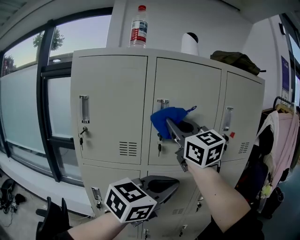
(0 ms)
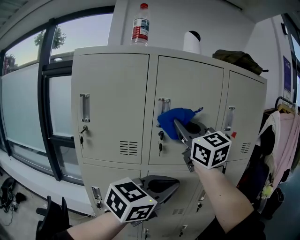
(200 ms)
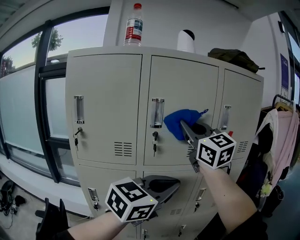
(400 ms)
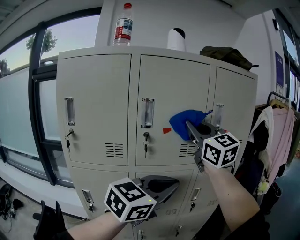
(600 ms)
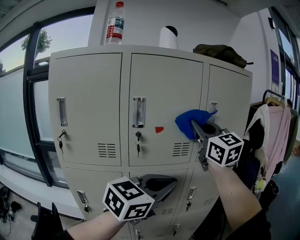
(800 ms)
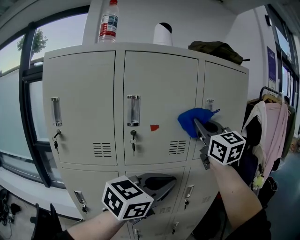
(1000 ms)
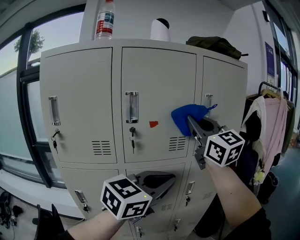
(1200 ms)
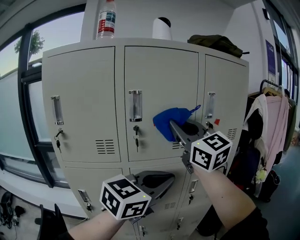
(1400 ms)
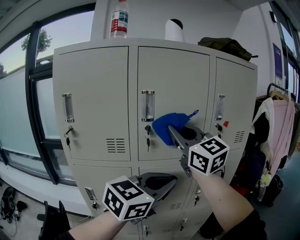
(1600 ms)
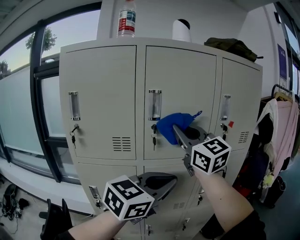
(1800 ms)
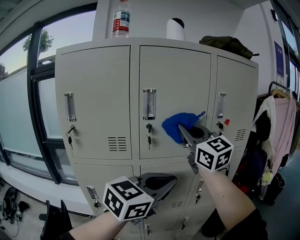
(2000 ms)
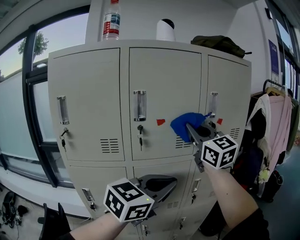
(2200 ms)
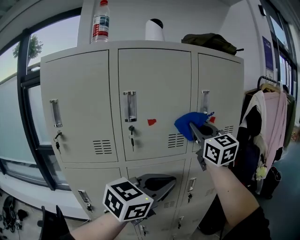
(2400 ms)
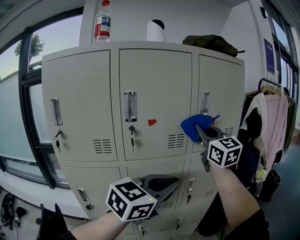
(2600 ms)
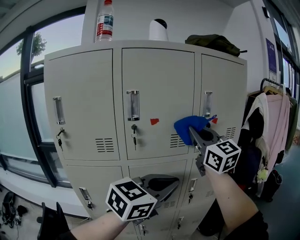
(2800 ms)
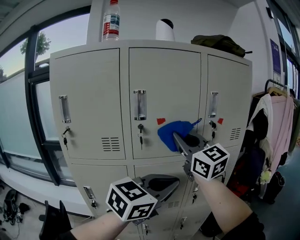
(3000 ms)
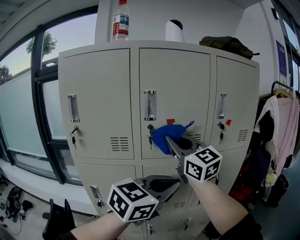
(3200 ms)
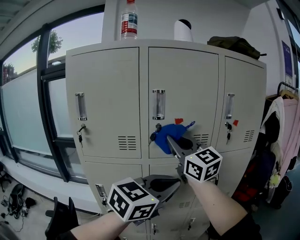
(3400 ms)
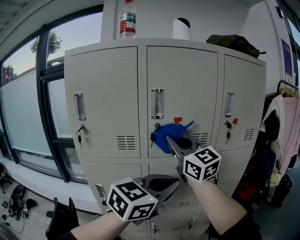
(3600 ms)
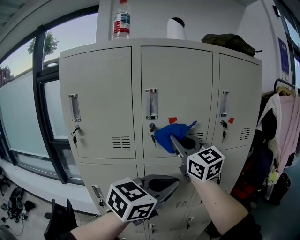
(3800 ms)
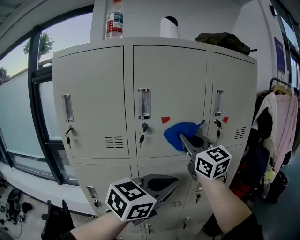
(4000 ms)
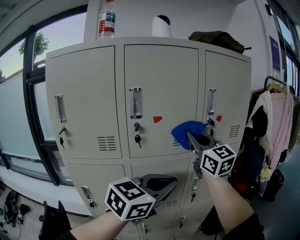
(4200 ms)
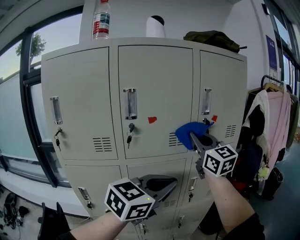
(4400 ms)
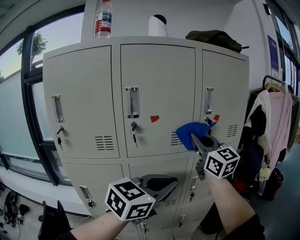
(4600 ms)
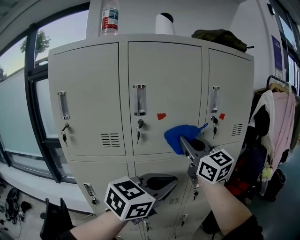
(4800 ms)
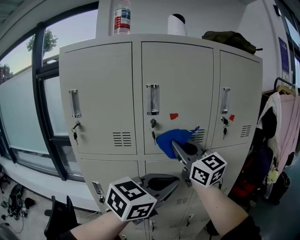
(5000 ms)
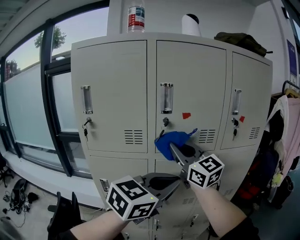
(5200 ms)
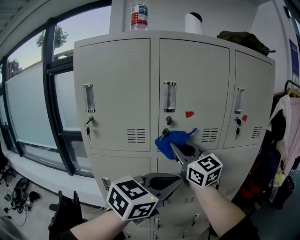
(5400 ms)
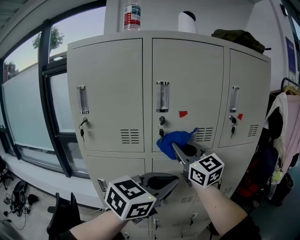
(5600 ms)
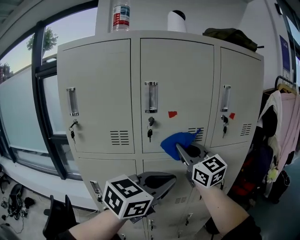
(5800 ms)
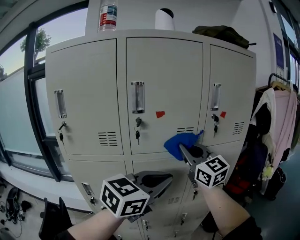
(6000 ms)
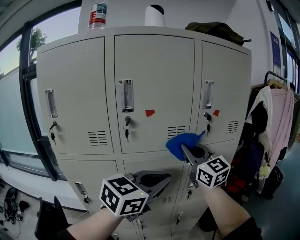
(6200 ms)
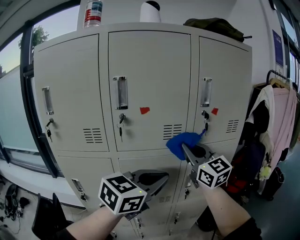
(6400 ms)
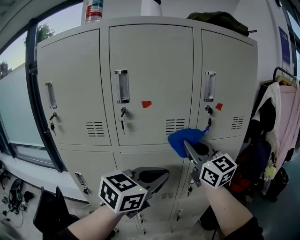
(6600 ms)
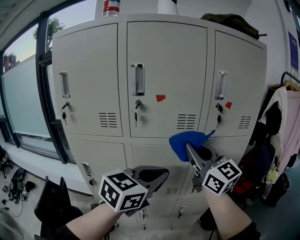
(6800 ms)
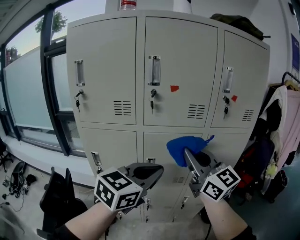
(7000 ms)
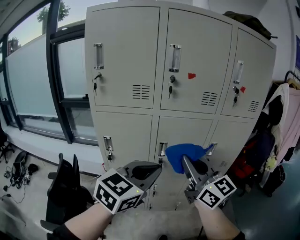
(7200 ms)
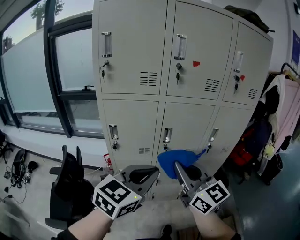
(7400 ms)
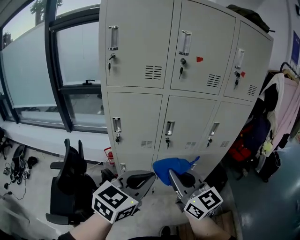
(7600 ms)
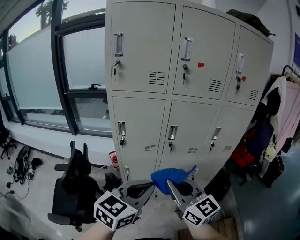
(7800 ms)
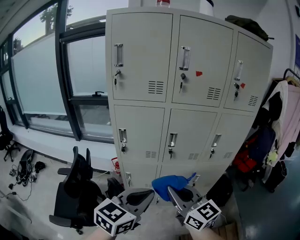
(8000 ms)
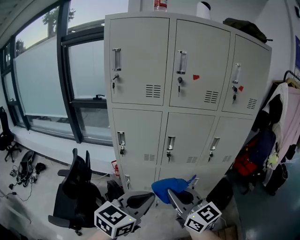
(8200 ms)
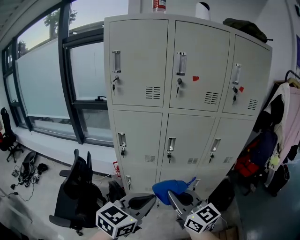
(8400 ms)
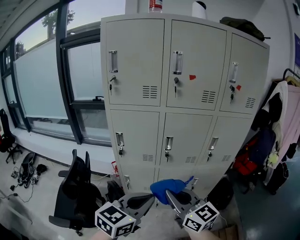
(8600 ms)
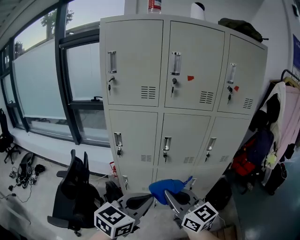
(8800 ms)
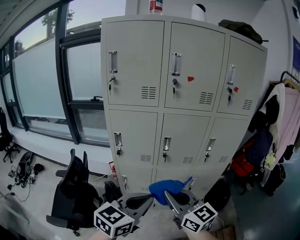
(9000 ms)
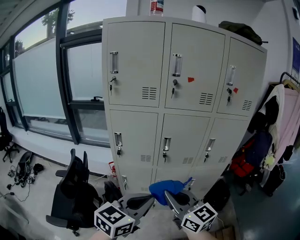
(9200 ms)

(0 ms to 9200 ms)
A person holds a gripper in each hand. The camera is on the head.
0 ms - 1600 ms: The right gripper moves approximately 20 cm to the right and comes back.
1600 ms - 3000 ms: The right gripper moves approximately 15 cm to the right and comes back.
3000 ms - 4600 ms: The right gripper travels to the right by approximately 10 cm.
4600 ms - 6200 ms: The right gripper heads downward, covering about 5 cm, and travels to the left and back again, about 20 cm each way. The left gripper moves roughly 10 cm to the left and comes back.
6200 ms - 7600 ms: Both grippers travel together backward, to the left and downward, roughly 35 cm.
7600 ms - 9200 ms: The right gripper changes place by roughly 5 cm. Meanwhile the left gripper is displaced backward by roughly 5 cm.

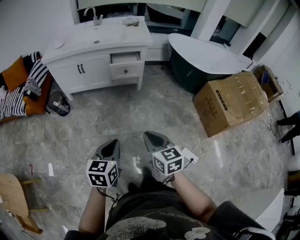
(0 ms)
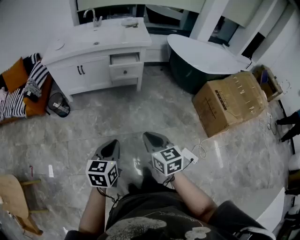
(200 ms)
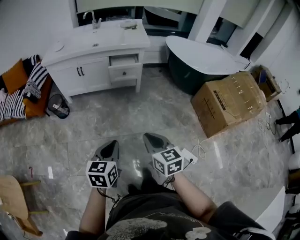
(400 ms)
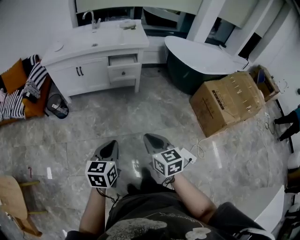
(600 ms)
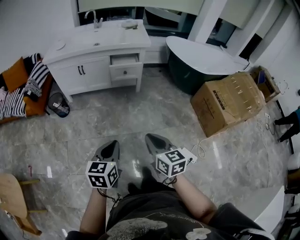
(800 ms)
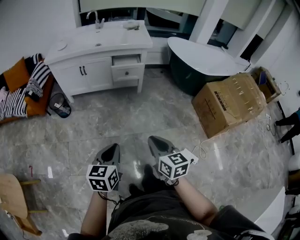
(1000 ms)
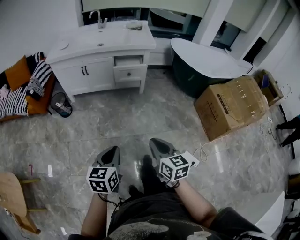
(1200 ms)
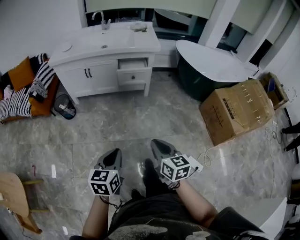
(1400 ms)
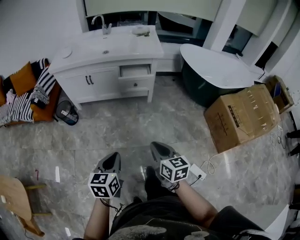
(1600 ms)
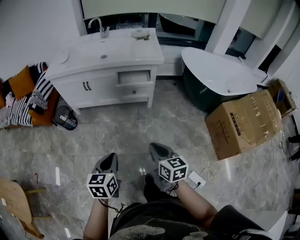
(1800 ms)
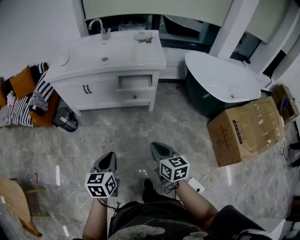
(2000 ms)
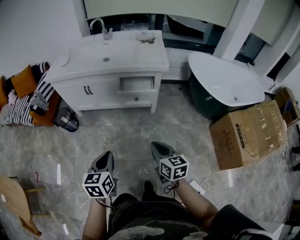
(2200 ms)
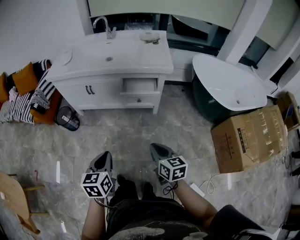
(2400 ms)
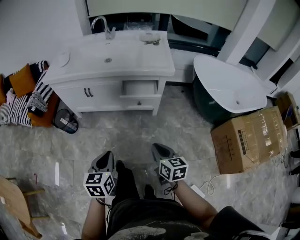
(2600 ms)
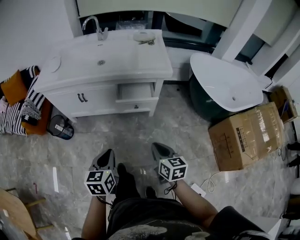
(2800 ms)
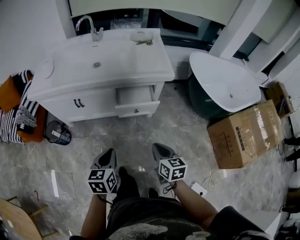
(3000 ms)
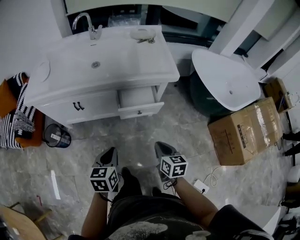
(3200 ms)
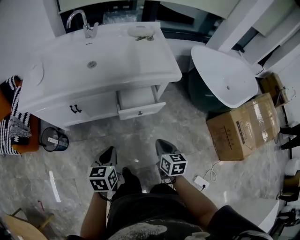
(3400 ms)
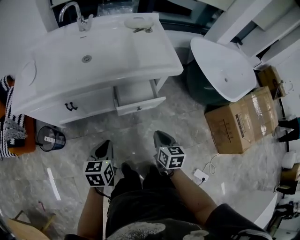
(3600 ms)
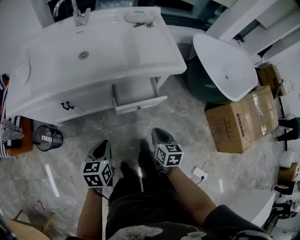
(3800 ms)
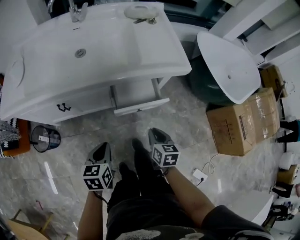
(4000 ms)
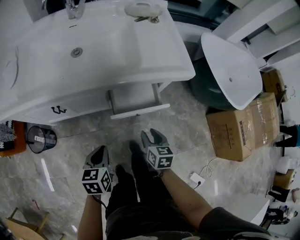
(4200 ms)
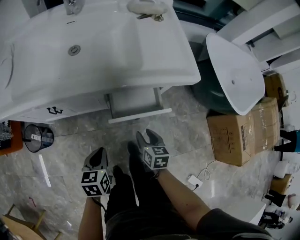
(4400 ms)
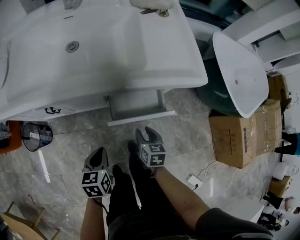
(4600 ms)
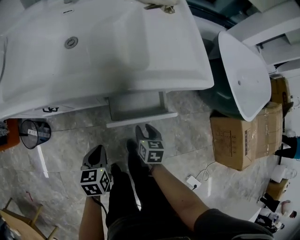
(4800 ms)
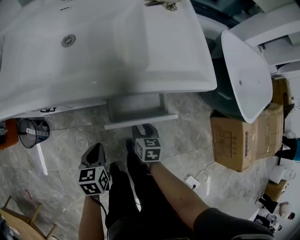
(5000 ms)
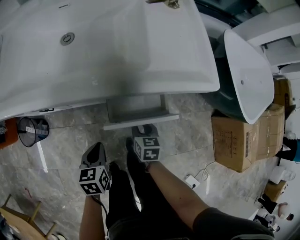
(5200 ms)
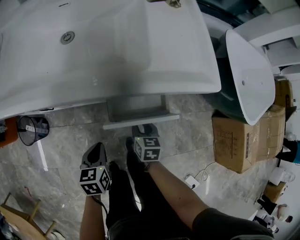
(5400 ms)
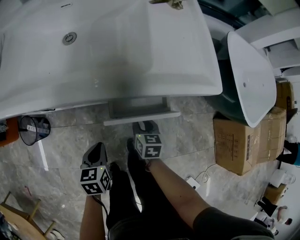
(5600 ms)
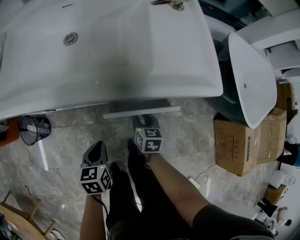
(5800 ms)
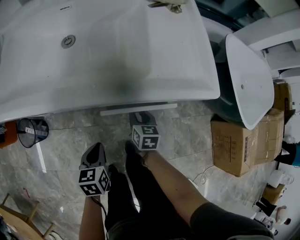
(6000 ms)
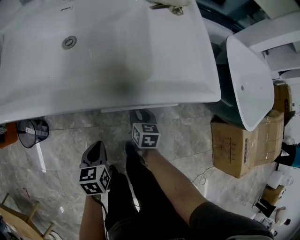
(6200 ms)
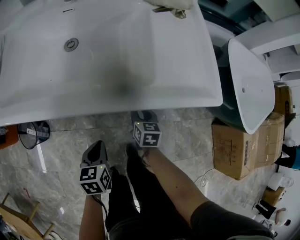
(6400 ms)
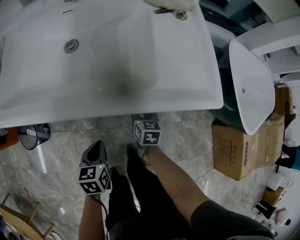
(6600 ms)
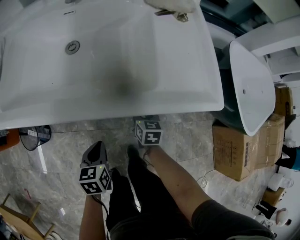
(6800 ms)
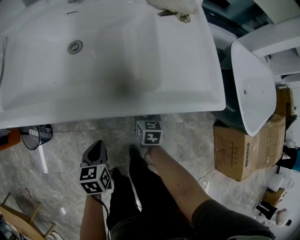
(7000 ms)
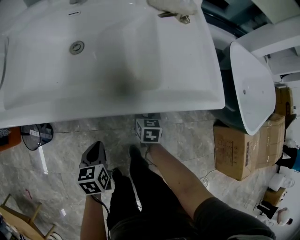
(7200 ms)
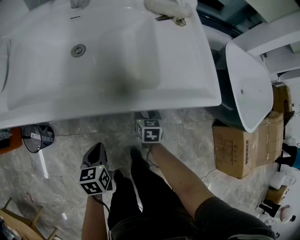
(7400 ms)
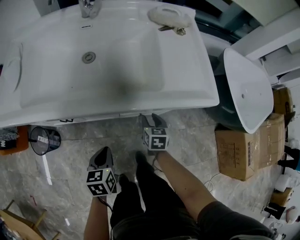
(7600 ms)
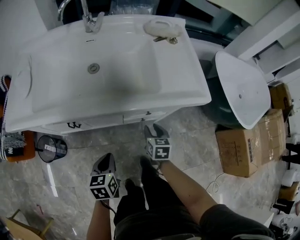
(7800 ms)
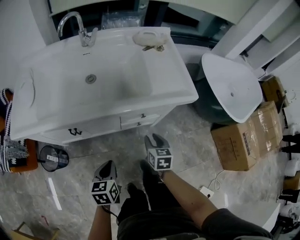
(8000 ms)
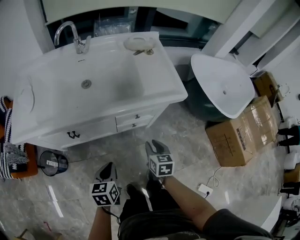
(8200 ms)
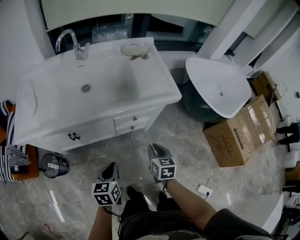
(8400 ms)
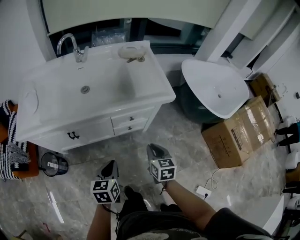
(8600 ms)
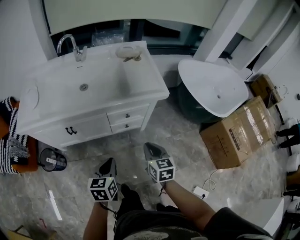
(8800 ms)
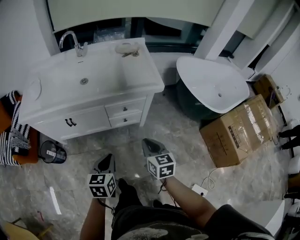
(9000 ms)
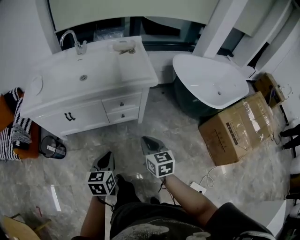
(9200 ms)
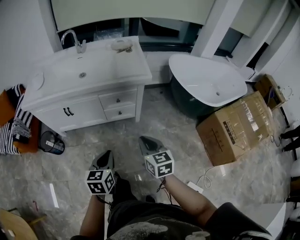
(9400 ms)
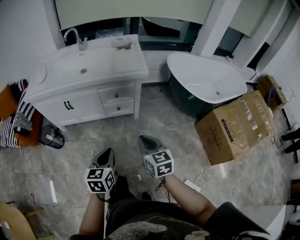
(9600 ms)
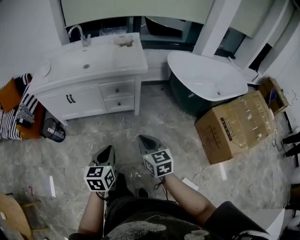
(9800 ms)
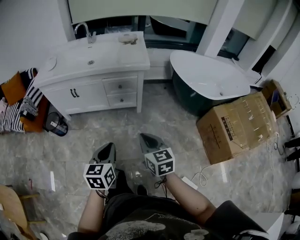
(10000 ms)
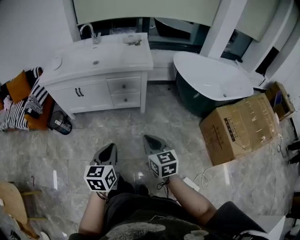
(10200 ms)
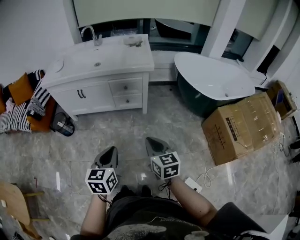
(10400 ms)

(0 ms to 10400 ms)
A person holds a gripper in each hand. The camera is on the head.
0 ms - 1400 ms: The grippers move only a little.
1400 ms - 3000 ms: The two grippers go approximately 40 cm forward.
3000 ms - 4400 ms: Both grippers move forward and downward, some 25 cm. The right gripper opens.
4400 ms - 6000 ms: The right gripper moves forward and downward, about 15 cm. Meanwhile the left gripper heads forward and downward, covering about 10 cm.
6000 ms - 7400 ms: The left gripper changes place by roughly 5 cm.
7400 ms - 9000 ms: The right gripper shifts about 40 cm backward and upward, and closes its fingers, while the left gripper heads upward, backward and to the right, covering roughly 30 cm, and swivels about 20 degrees.
9000 ms - 10400 ms: The left gripper is displaced backward and to the right by some 30 cm, while the right gripper moves backward, about 30 cm.

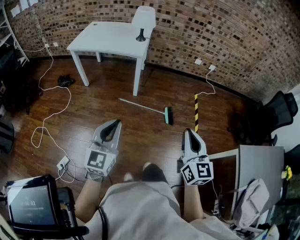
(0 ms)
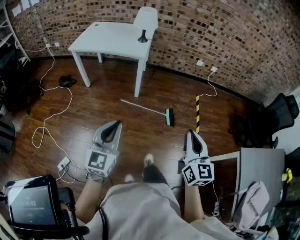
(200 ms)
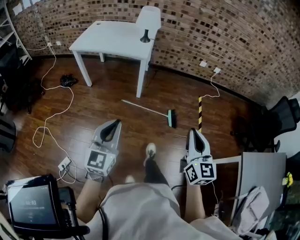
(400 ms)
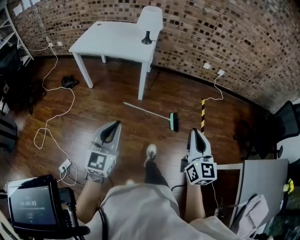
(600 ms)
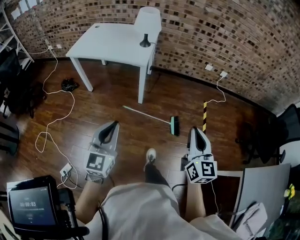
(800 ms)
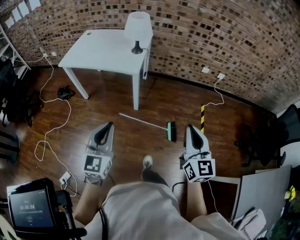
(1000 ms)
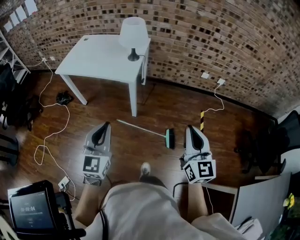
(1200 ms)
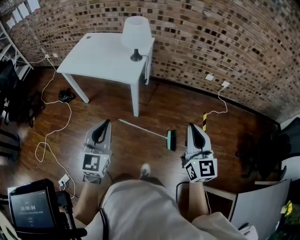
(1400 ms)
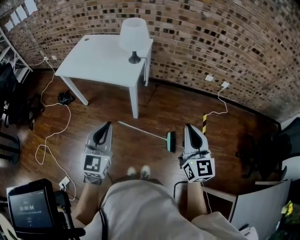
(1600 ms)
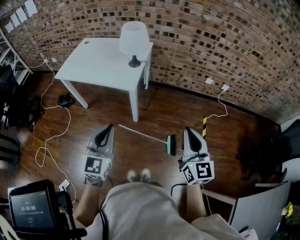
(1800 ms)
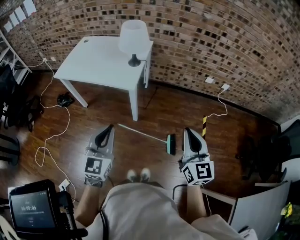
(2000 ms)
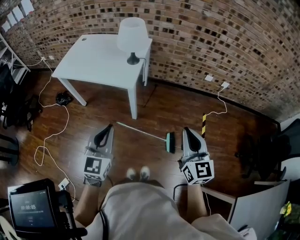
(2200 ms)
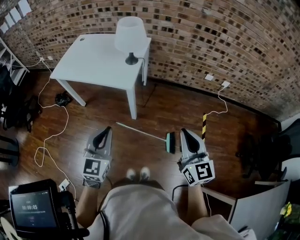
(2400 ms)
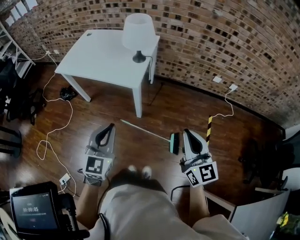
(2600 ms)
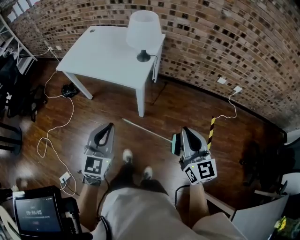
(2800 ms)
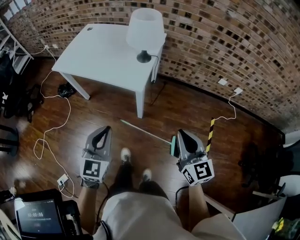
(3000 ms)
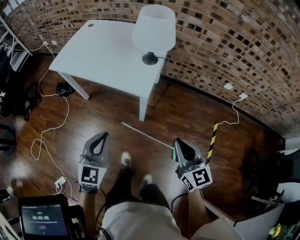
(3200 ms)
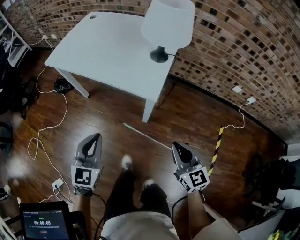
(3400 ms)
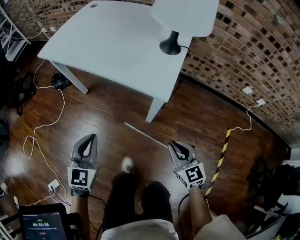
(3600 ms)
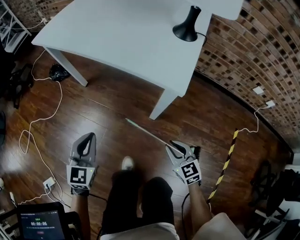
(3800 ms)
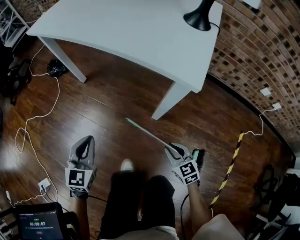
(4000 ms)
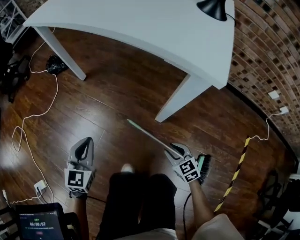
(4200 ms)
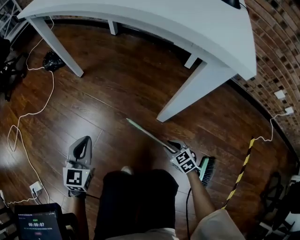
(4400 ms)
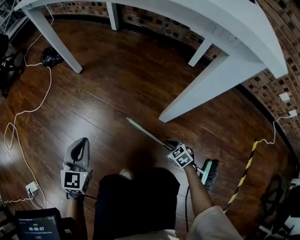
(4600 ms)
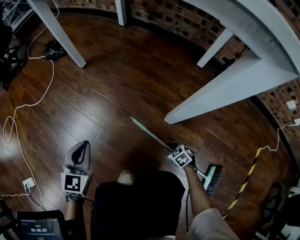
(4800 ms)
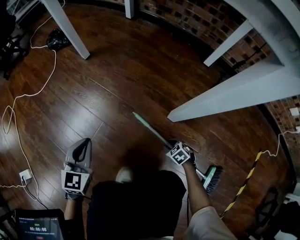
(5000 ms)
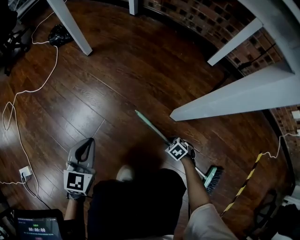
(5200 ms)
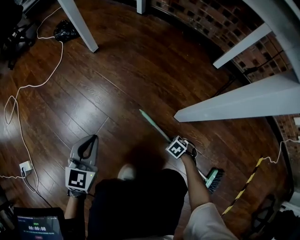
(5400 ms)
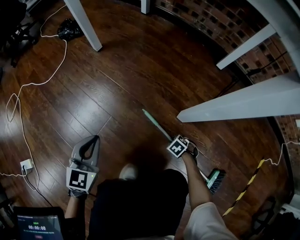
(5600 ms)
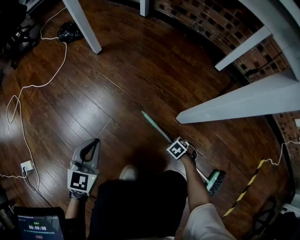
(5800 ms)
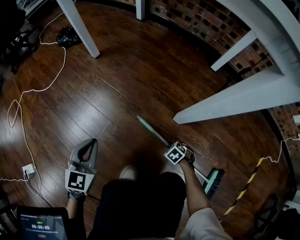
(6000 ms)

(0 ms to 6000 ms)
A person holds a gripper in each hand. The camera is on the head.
0 ms - 1600 ms: The two grippers go some 35 cm forward.
1600 ms - 3000 ms: The right gripper goes some 15 cm forward, downward and to the left. The left gripper is displaced forward and downward by approximately 10 cm.
3000 ms - 4400 ms: The two grippers go approximately 70 cm downward. The right gripper points its fingers roughly 40 degrees further downward, and opens up. Meanwhile the left gripper turns by some 20 degrees.
4400 ms - 6000 ms: The right gripper moves downward, some 20 cm, and changes its angle by about 30 degrees. The left gripper is displaced downward by some 10 cm.
